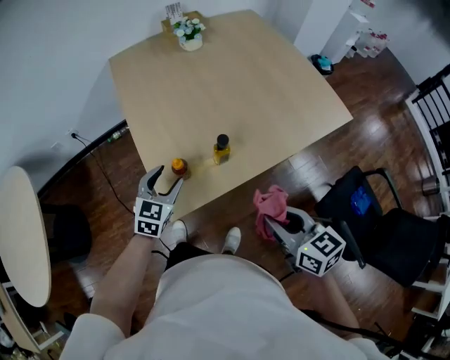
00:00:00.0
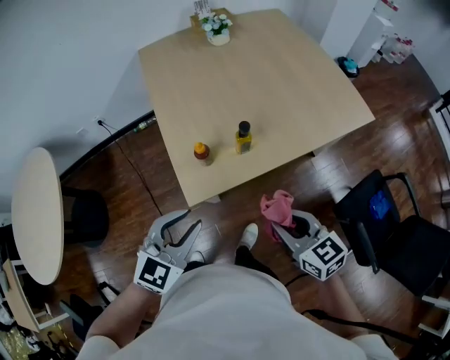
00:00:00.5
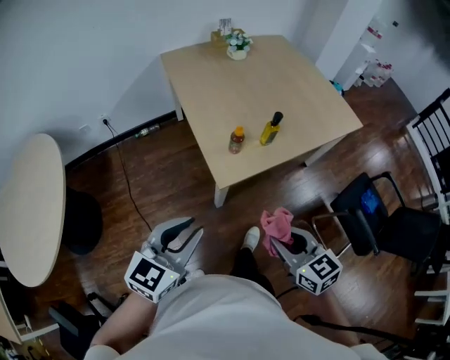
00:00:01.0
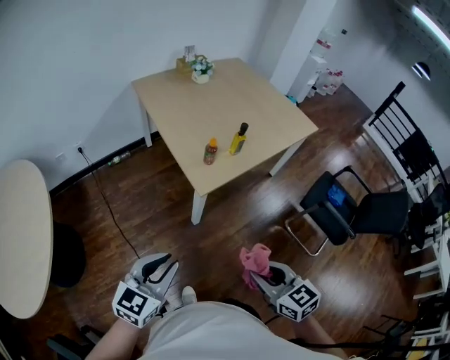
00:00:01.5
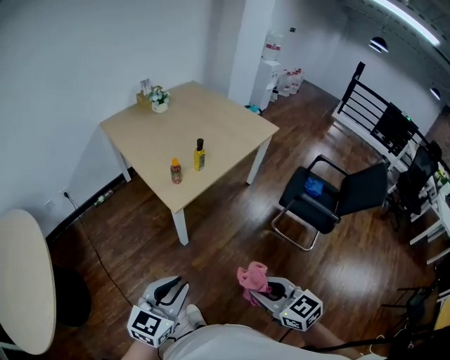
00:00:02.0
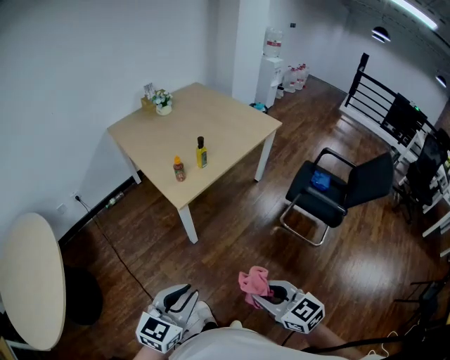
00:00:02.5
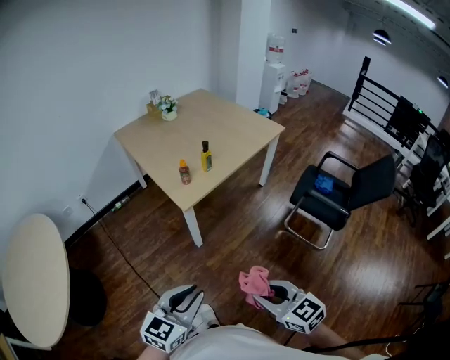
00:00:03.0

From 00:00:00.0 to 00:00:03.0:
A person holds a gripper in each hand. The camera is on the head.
From 00:00:00.0 to 00:00:01.5: The two grippers travel together, backward and to the left, roughly 40 cm. The left gripper turns by approximately 20 degrees, and closes its fingers.
From 00:00:01.5 to 00:00:03.0: Both grippers travel together backward and to the right, about 15 cm.

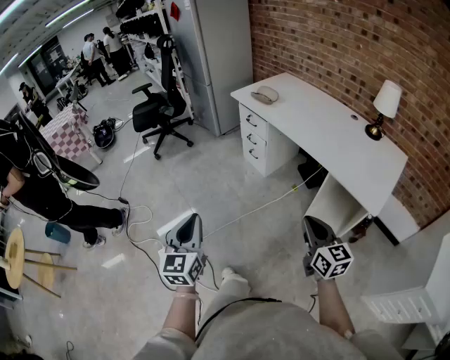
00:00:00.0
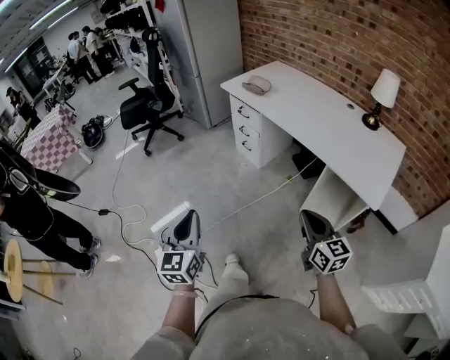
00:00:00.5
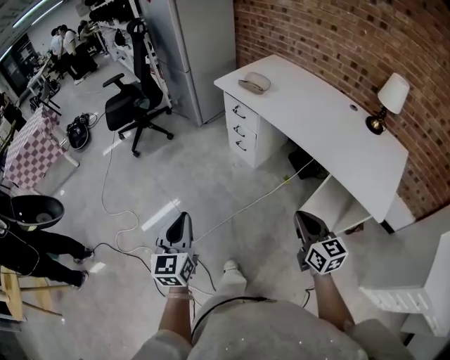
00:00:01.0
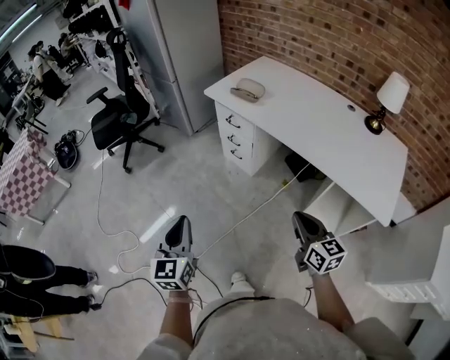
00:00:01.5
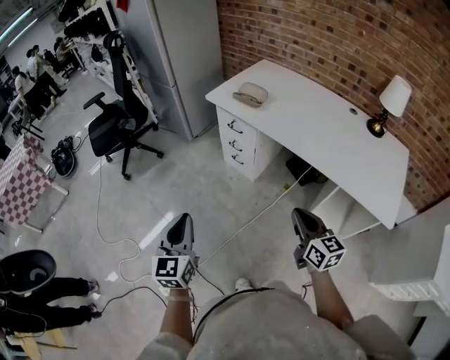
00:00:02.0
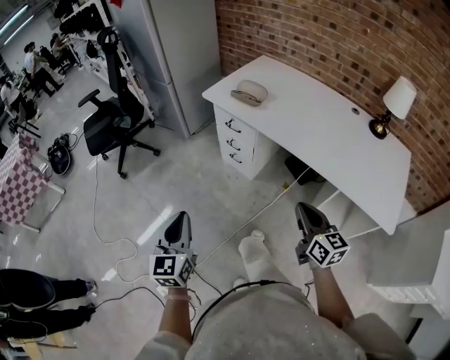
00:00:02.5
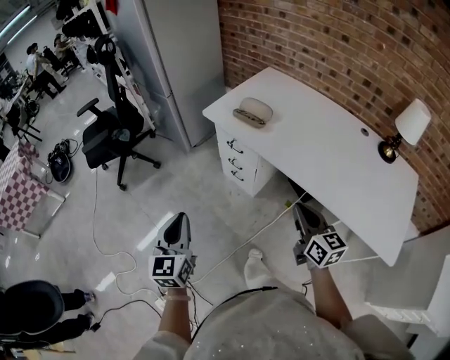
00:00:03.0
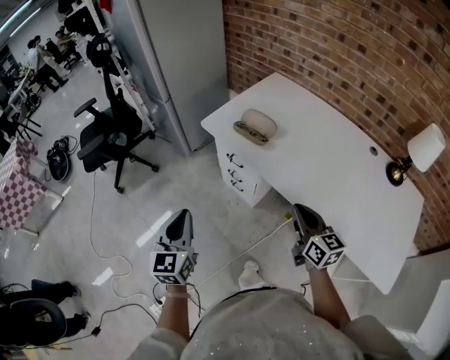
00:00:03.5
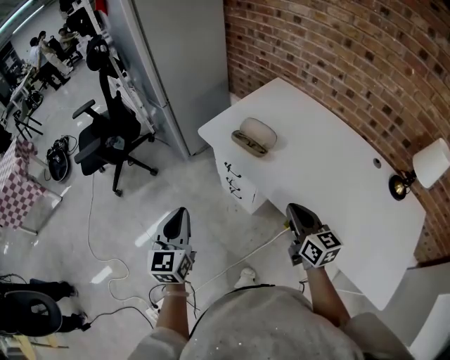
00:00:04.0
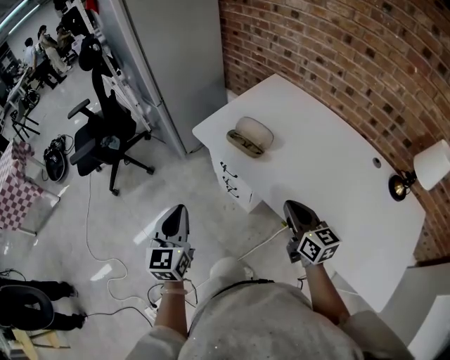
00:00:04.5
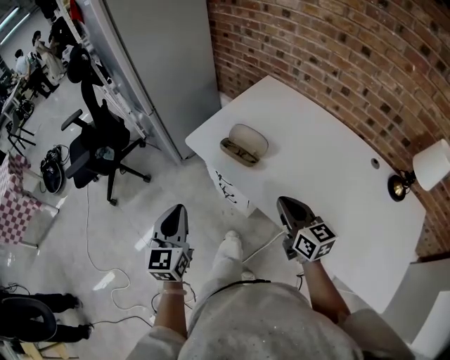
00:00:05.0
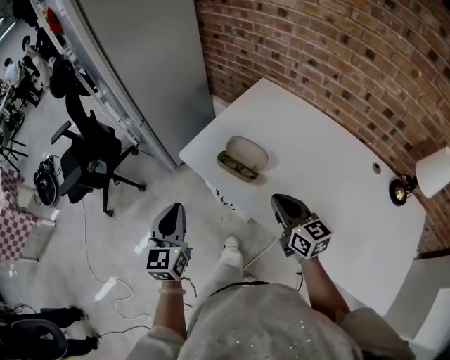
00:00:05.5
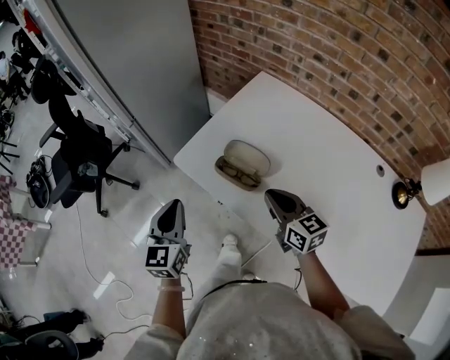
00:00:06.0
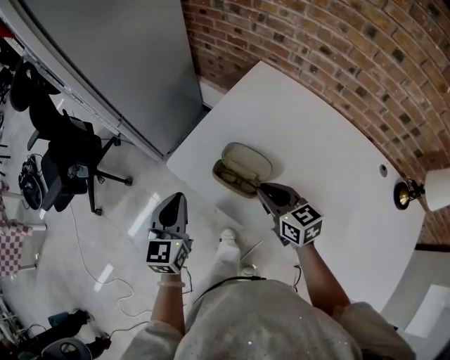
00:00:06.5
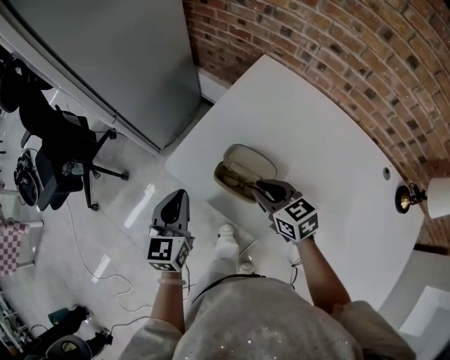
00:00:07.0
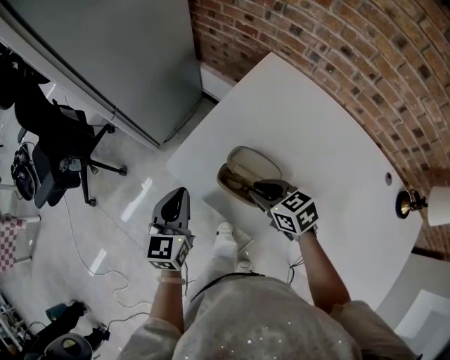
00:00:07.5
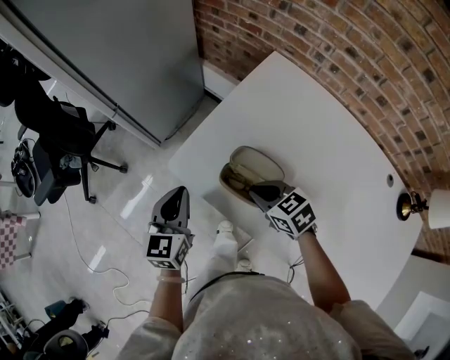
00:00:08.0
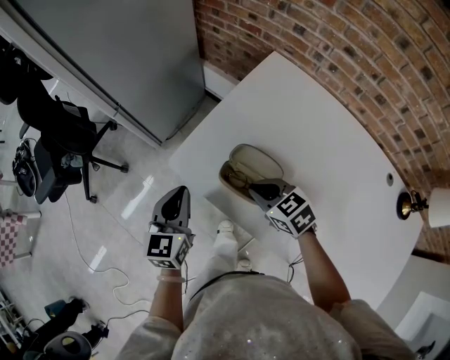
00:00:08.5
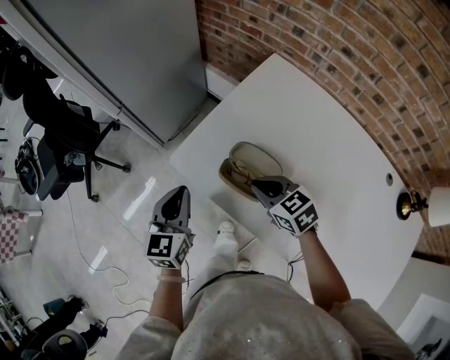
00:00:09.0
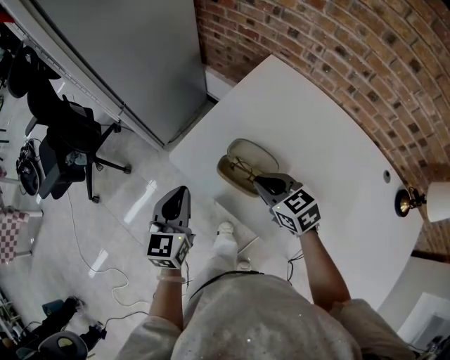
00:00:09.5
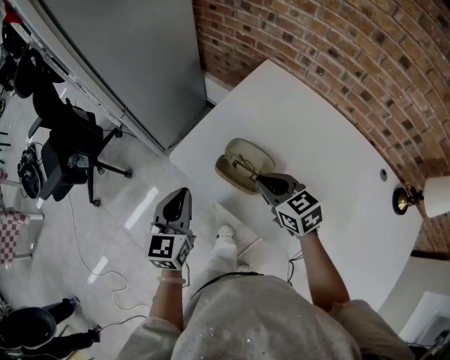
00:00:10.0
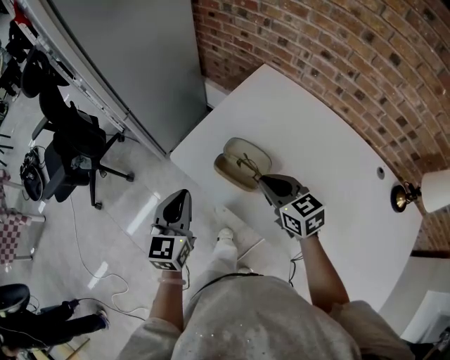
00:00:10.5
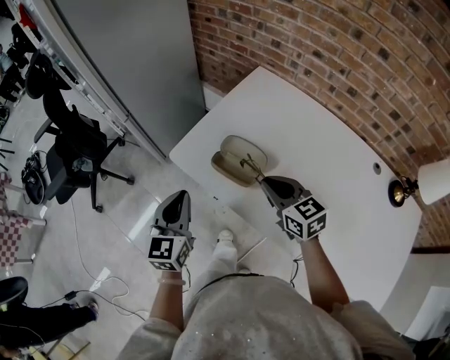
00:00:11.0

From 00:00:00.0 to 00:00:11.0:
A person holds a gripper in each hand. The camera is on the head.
From 00:00:00.0 to 00:00:02.0: Both grippers move forward, approximately 25 cm.
From 00:00:02.0 to 00:00:03.5: The grippers both shift forward by about 25 cm.
From 00:00:03.5 to 00:00:05.5: The two grippers go some 20 cm forward.
From 00:00:05.5 to 00:00:07.5: The two grippers go approximately 20 cm forward and downward. The right gripper swivels roughly 30 degrees.
From 00:00:07.5 to 00:00:09.0: There are only small adjustments of the grippers.
From 00:00:09.0 to 00:00:11.0: The right gripper shifts approximately 10 cm upward and backward, and swivels about 20 degrees; the left gripper moves backward and upward, about 10 cm.

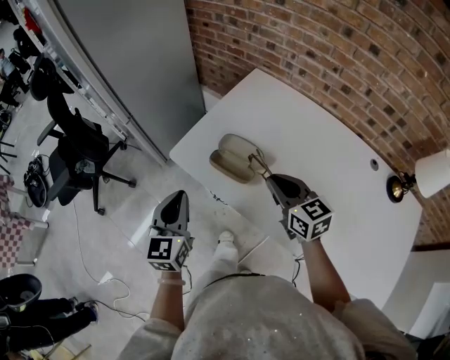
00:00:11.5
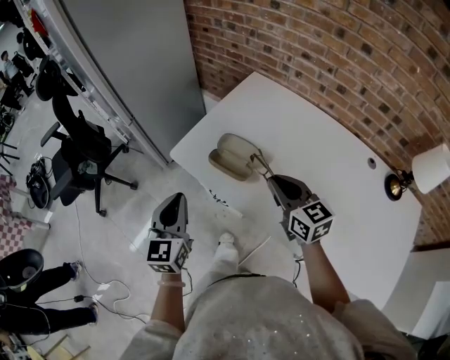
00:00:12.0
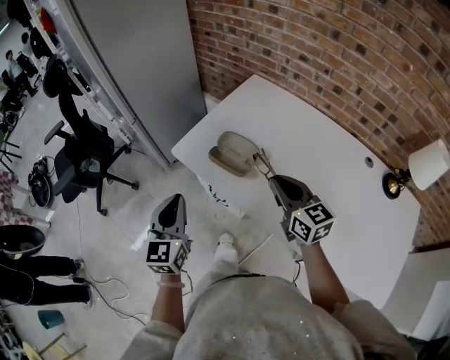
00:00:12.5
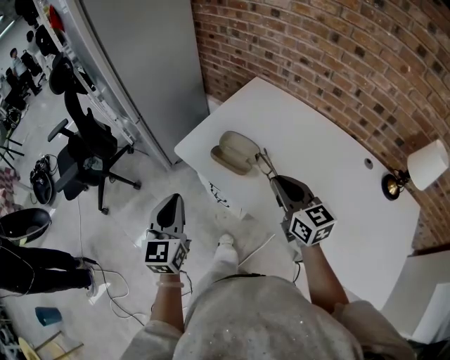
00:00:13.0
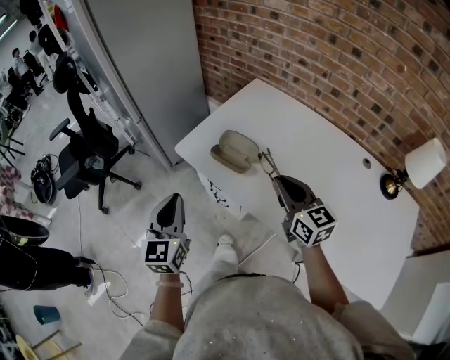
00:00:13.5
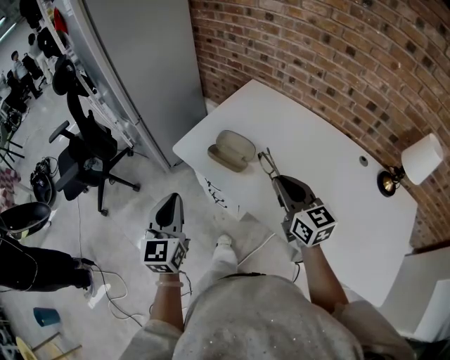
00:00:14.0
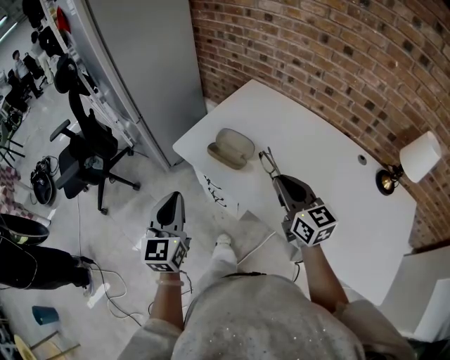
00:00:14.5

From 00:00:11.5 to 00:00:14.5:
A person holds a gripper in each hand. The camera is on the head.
From 00:00:11.5 to 00:00:13.0: The grippers both shift backward by approximately 5 cm.
From 00:00:13.0 to 00:00:14.5: The grippers stay close to where they were, moving slightly.

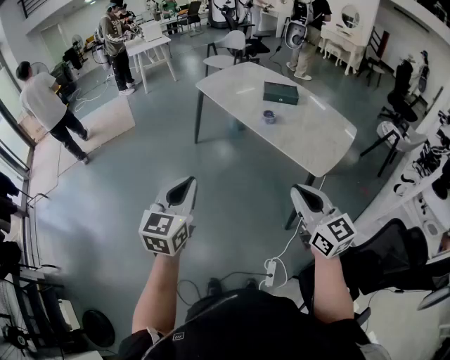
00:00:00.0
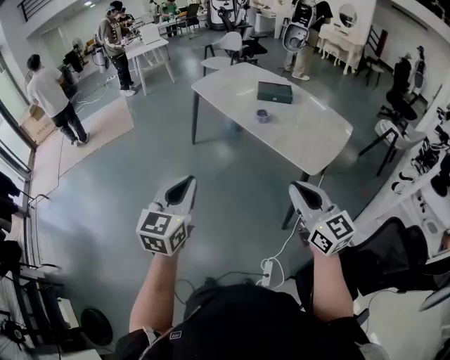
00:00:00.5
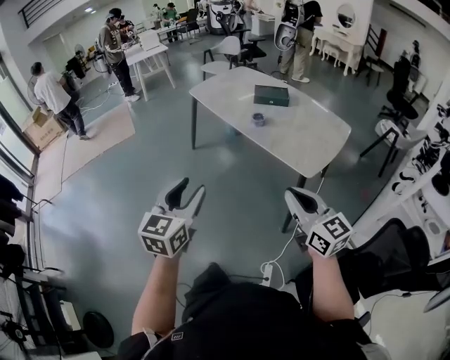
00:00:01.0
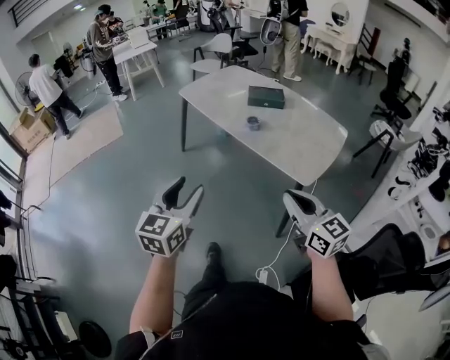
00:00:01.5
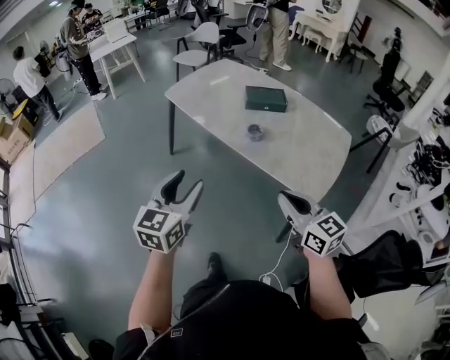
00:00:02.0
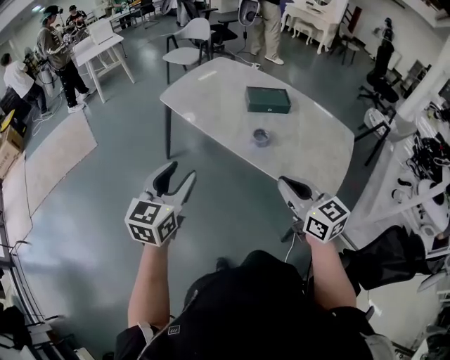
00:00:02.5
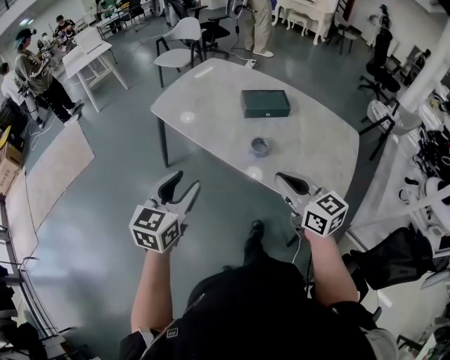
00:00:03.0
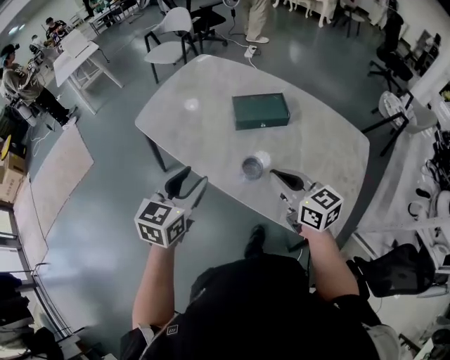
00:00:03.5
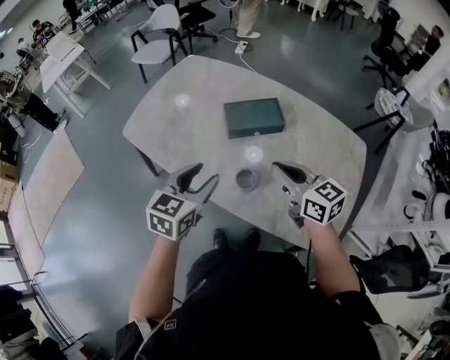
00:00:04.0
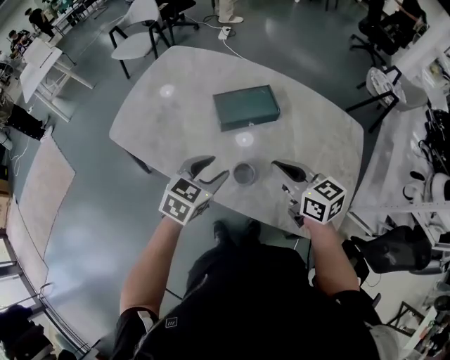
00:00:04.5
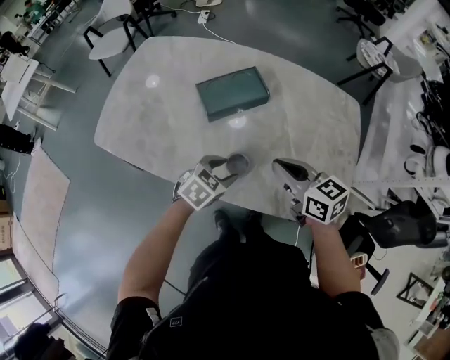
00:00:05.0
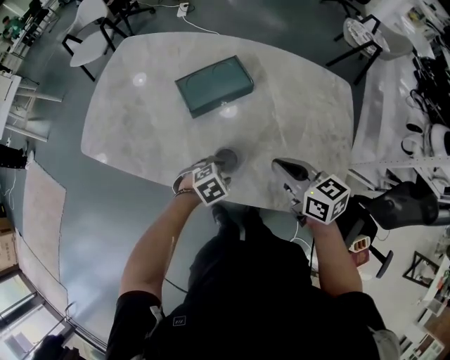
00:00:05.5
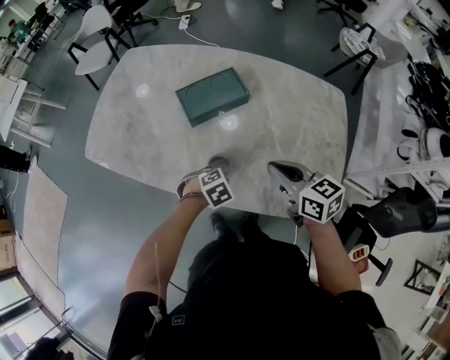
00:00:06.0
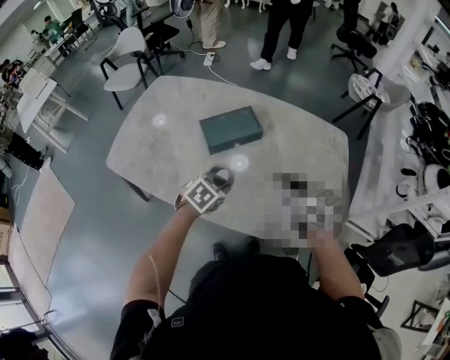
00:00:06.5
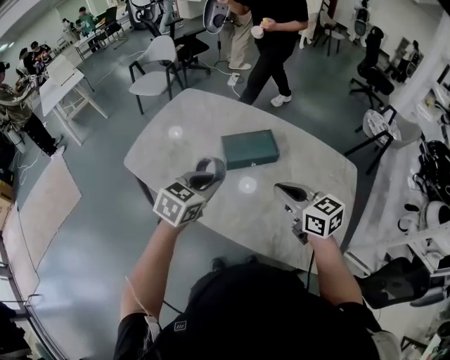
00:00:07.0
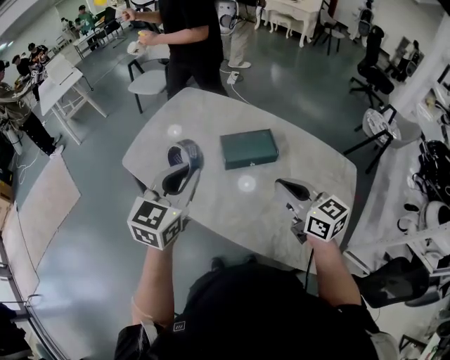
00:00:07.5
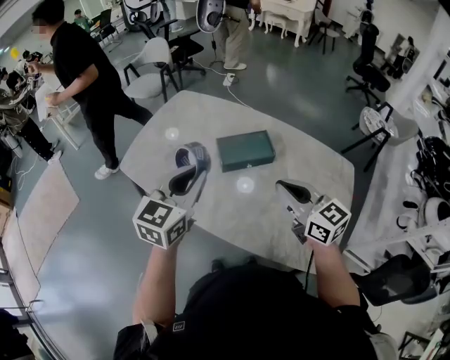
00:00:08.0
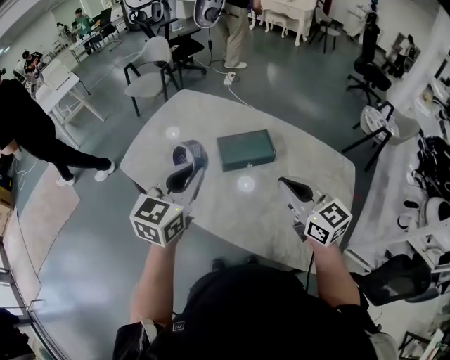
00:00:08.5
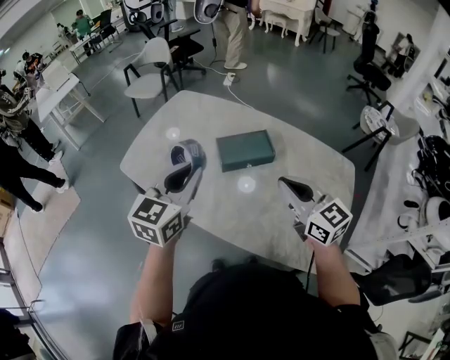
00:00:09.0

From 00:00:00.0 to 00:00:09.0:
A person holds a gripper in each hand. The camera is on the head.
From 00:00:00.0 to 00:00:02.0: The grippers both shift forward by roughly 30 cm. The left gripper opens.
From 00:00:02.0 to 00:00:04.5: The pair of grippers is taken forward, approximately 50 cm. The left gripper rotates about 40 degrees.
From 00:00:04.5 to 00:00:07.0: The left gripper moves some 20 cm downward and comes back, and closes.
From 00:00:07.0 to 00:00:09.0: The left gripper shifts roughly 10 cm upward, and changes its angle by about 30 degrees, while the right gripper goes some 5 cm upward.
